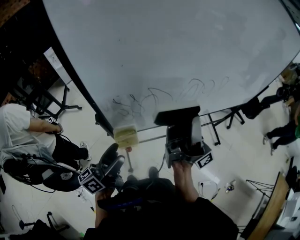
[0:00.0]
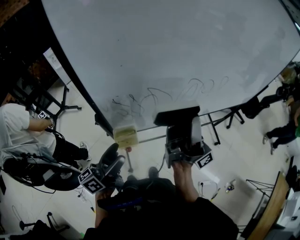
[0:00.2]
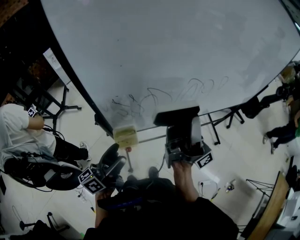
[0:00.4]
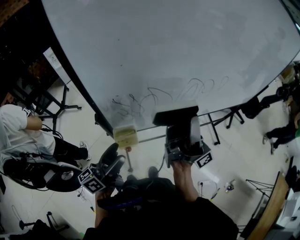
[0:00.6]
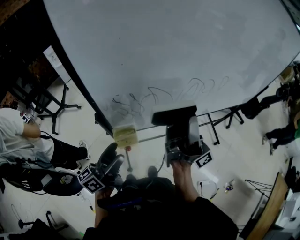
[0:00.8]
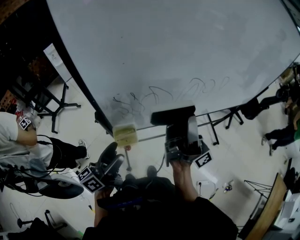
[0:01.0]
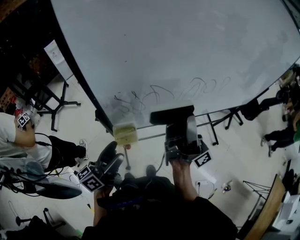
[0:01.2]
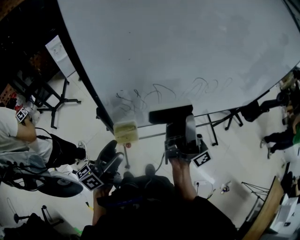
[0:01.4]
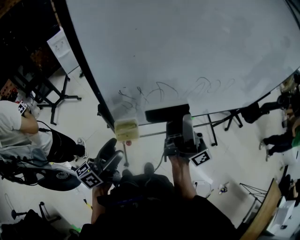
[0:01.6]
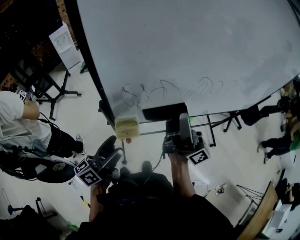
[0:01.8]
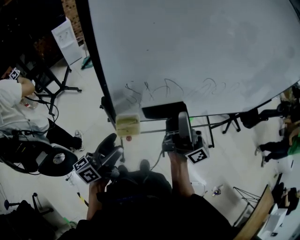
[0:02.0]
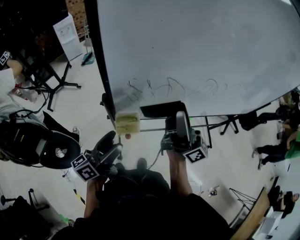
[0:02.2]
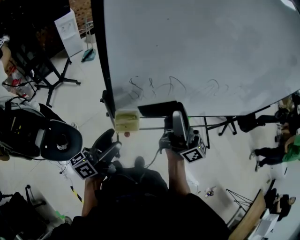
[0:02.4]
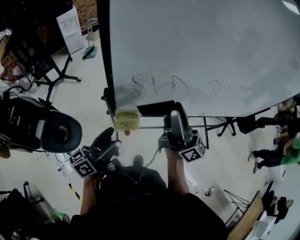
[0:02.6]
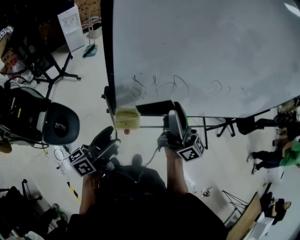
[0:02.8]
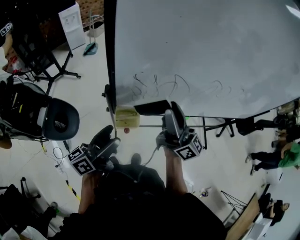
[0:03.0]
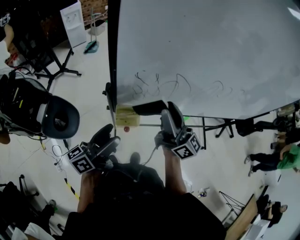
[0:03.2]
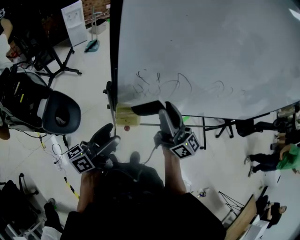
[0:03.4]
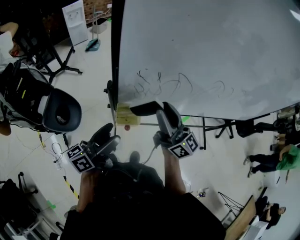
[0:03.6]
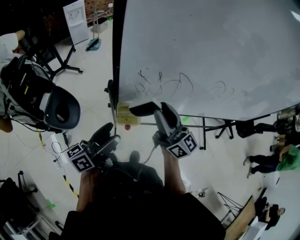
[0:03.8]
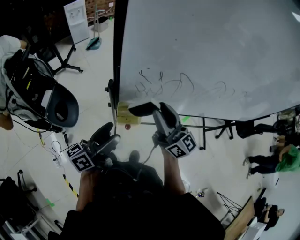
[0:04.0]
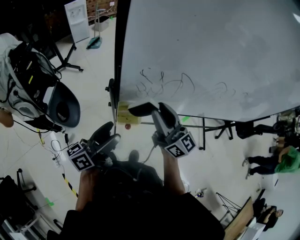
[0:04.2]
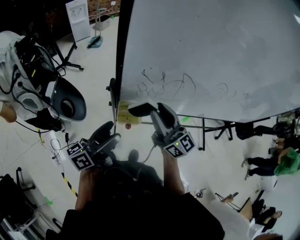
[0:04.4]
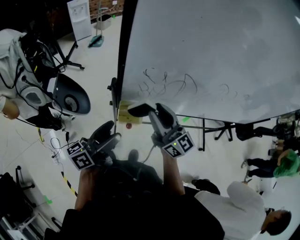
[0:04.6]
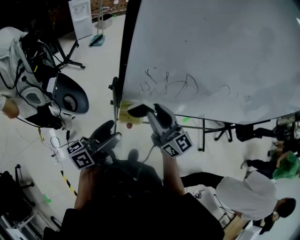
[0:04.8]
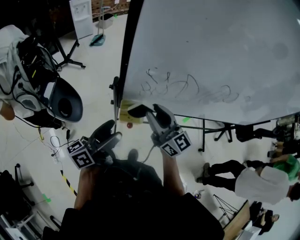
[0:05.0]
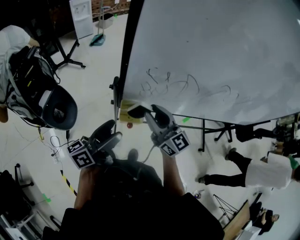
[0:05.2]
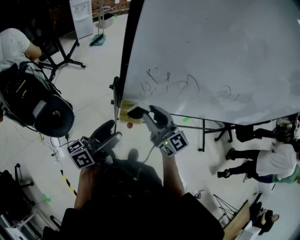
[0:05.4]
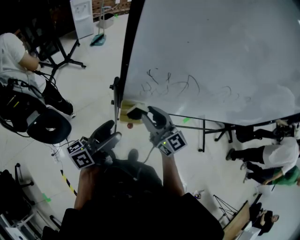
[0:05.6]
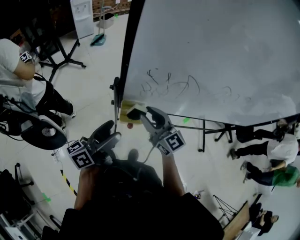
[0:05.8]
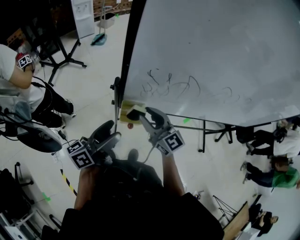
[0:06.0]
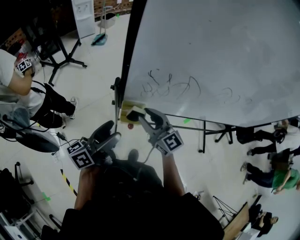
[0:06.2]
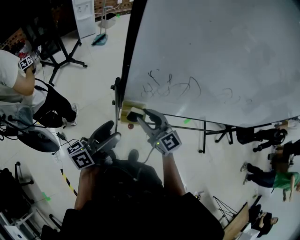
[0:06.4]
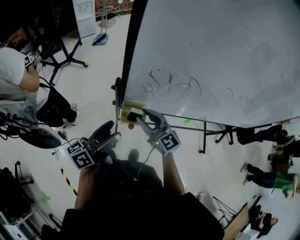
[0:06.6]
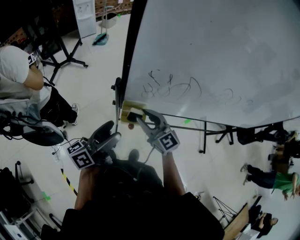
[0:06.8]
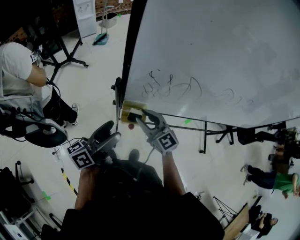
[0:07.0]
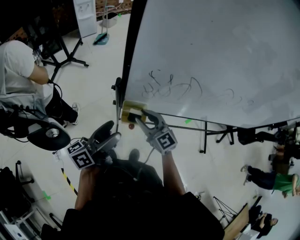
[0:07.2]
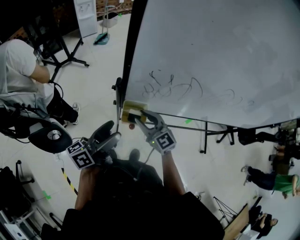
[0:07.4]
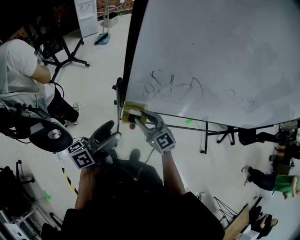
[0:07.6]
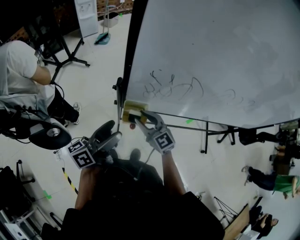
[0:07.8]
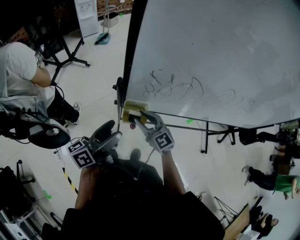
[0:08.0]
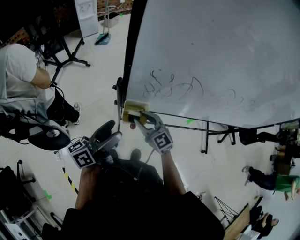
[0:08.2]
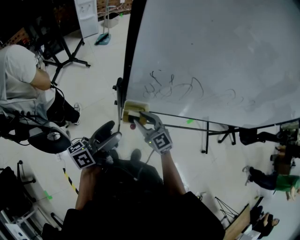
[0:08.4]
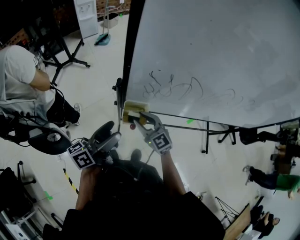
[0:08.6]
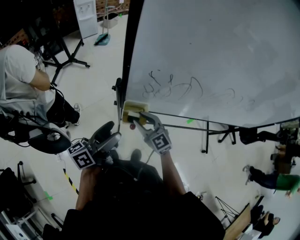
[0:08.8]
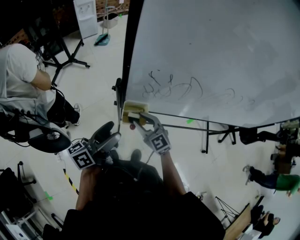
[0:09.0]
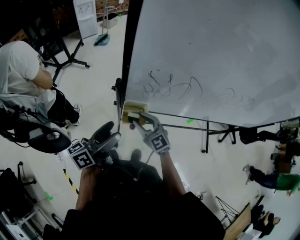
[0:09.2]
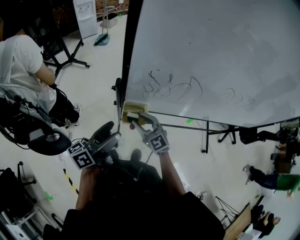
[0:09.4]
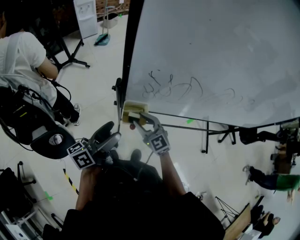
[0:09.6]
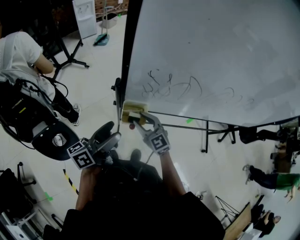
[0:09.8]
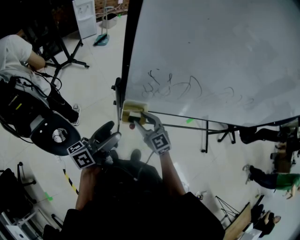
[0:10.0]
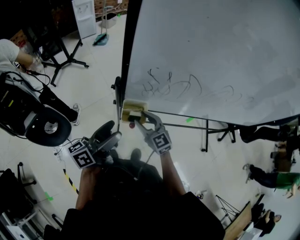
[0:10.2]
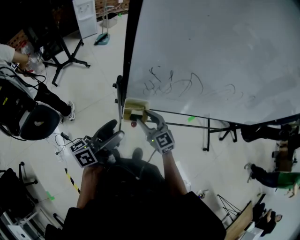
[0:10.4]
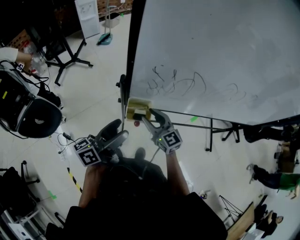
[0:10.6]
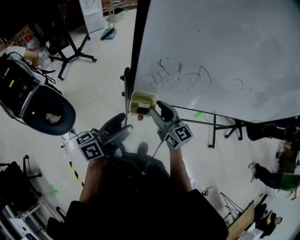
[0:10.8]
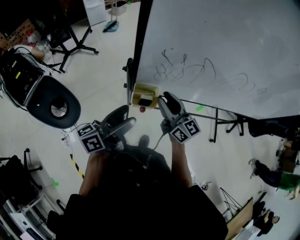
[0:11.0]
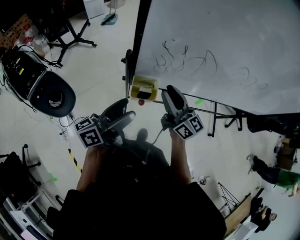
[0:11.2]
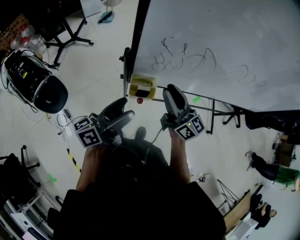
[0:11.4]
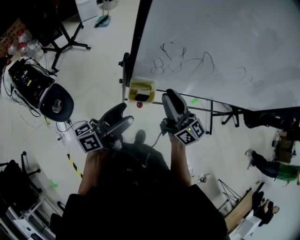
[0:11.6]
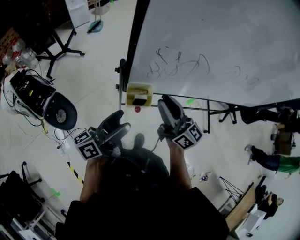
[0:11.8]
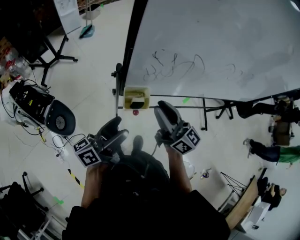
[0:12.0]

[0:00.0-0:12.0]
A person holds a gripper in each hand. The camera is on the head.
0:00.0 to 0:01.6: There are only small adjustments of the grippers.
0:01.6 to 0:03.0: The right gripper is displaced downward and to the left by roughly 10 cm, and rotates approximately 30 degrees.
0:03.0 to 0:04.4: The right gripper heads downward and to the left, covering approximately 10 cm, and turns by some 20 degrees.
0:04.4 to 0:06.0: The right gripper is displaced downward by about 5 cm, and rotates roughly 20 degrees.
0:06.0 to 0:07.6: The right gripper goes approximately 5 cm downward.
0:07.6 to 0:10.4: The grippers make only small movements.
0:10.4 to 0:12.0: The right gripper is displaced upward by some 15 cm, and turns by some 40 degrees.

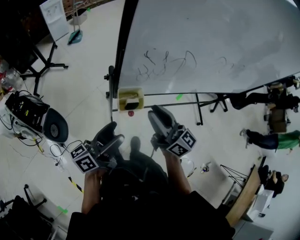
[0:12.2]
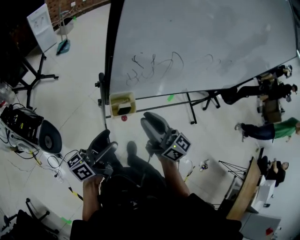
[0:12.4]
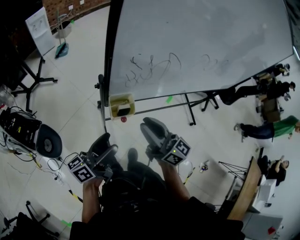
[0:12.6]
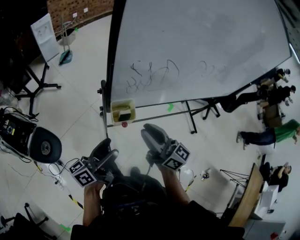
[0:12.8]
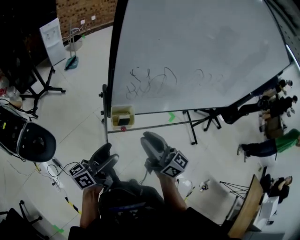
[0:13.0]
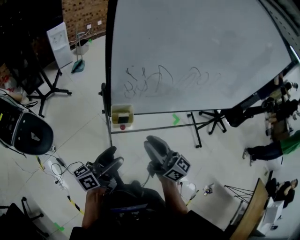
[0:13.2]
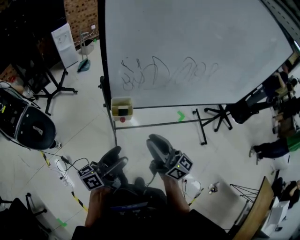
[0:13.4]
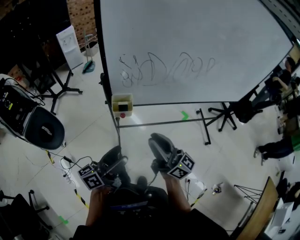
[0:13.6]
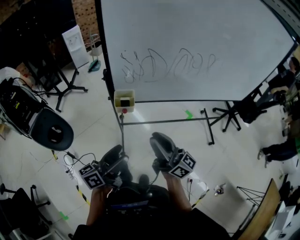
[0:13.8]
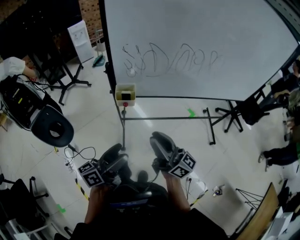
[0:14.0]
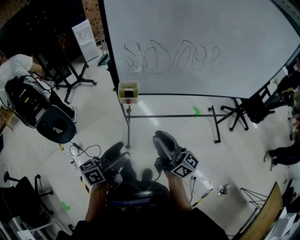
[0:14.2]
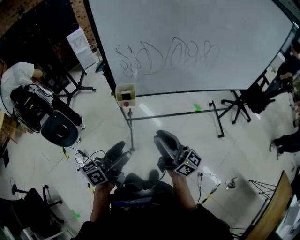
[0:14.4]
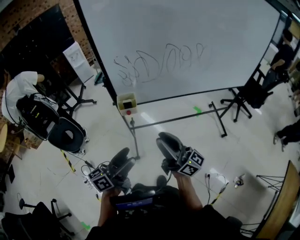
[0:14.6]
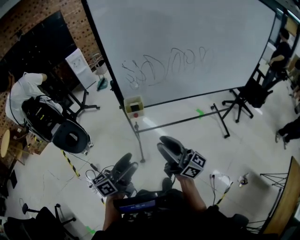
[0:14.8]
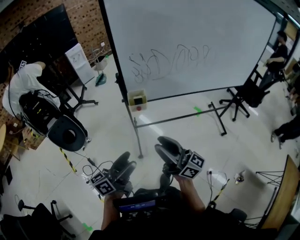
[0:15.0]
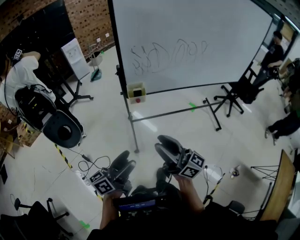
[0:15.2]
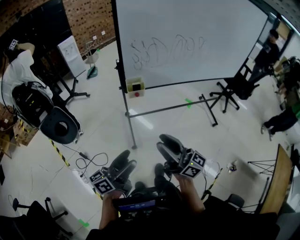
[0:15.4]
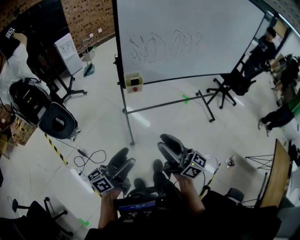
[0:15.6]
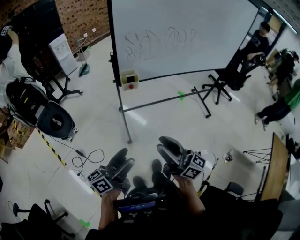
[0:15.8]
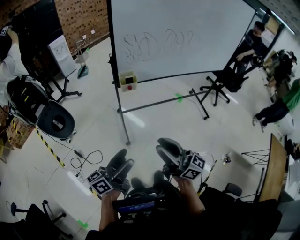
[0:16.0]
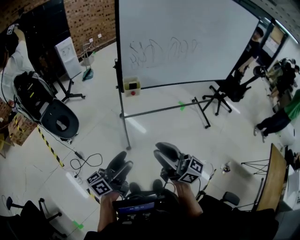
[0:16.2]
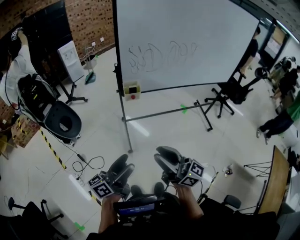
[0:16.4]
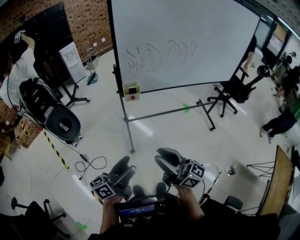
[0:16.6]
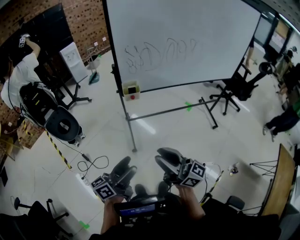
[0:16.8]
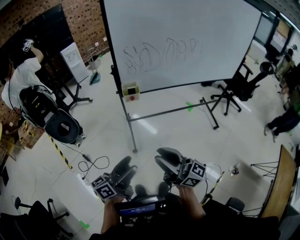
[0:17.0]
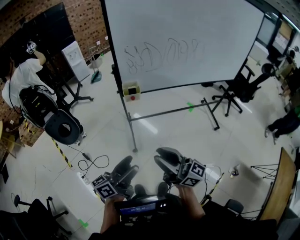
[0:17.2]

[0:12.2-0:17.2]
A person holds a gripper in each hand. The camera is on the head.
0:12.2 to 0:13.8: The two grippers go some 20 cm backward and to the right.
0:13.8 to 0:15.6: Both grippers travel together backward and to the left, roughly 20 cm.
0:15.6 to 0:17.2: The right gripper ends up roughly 5 cm from where it was. Meanwhile the left gripper shifts approximately 5 cm to the right.

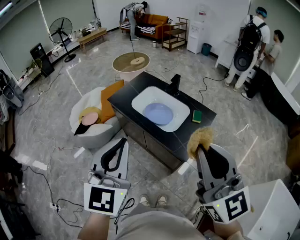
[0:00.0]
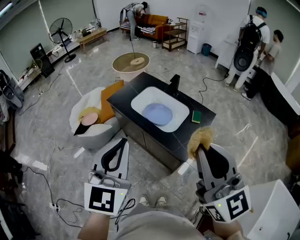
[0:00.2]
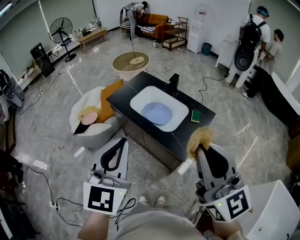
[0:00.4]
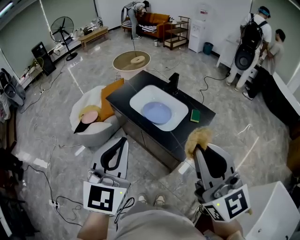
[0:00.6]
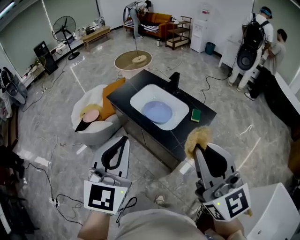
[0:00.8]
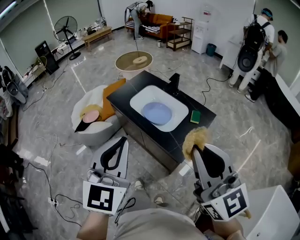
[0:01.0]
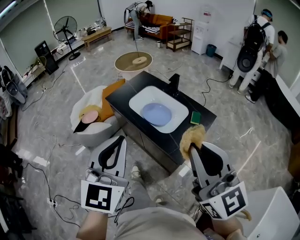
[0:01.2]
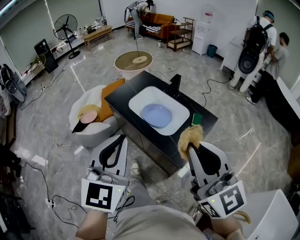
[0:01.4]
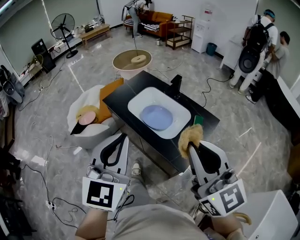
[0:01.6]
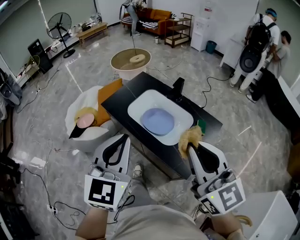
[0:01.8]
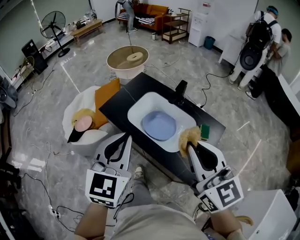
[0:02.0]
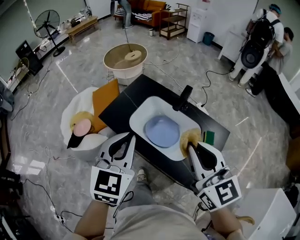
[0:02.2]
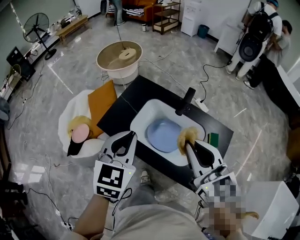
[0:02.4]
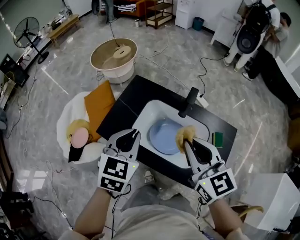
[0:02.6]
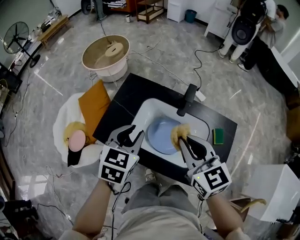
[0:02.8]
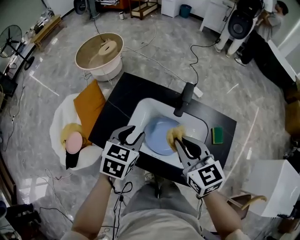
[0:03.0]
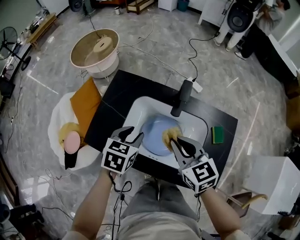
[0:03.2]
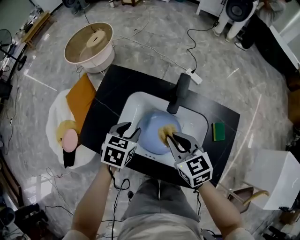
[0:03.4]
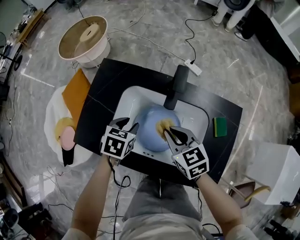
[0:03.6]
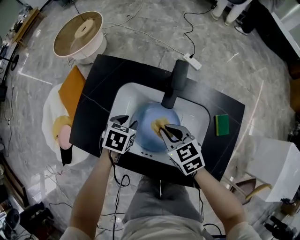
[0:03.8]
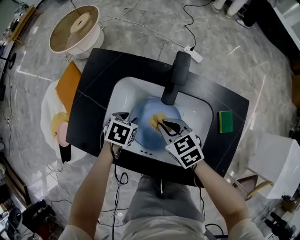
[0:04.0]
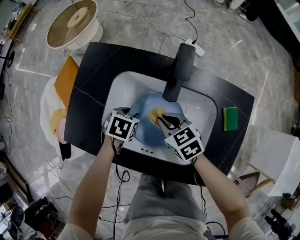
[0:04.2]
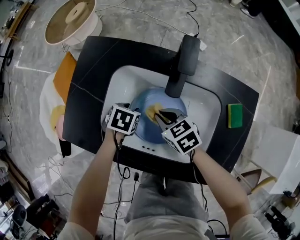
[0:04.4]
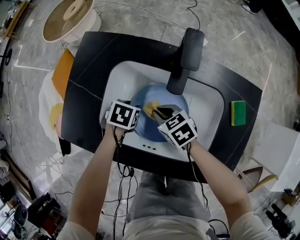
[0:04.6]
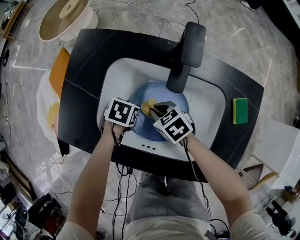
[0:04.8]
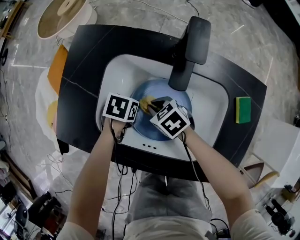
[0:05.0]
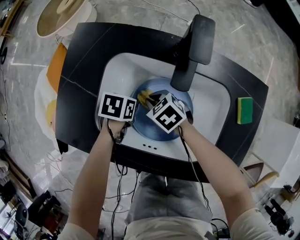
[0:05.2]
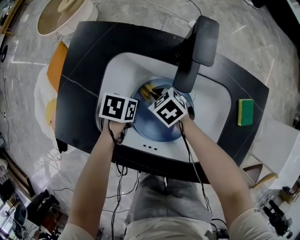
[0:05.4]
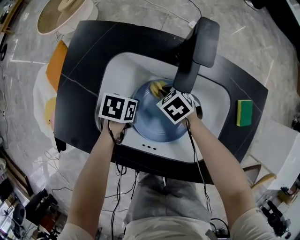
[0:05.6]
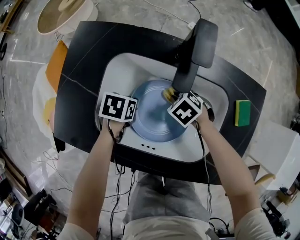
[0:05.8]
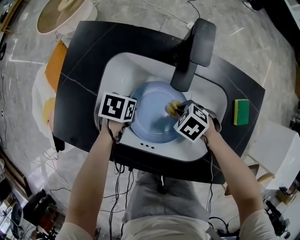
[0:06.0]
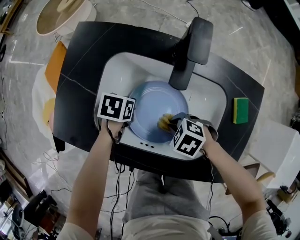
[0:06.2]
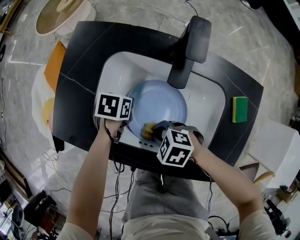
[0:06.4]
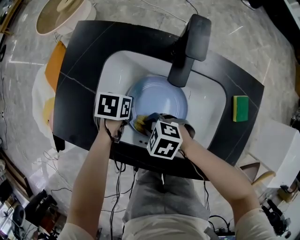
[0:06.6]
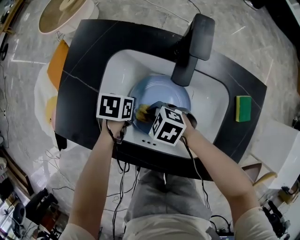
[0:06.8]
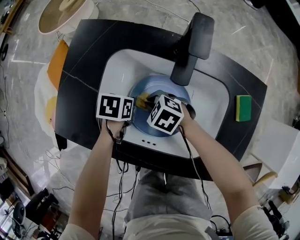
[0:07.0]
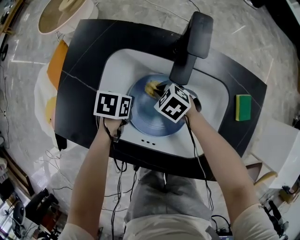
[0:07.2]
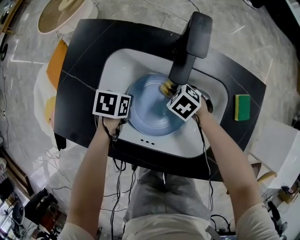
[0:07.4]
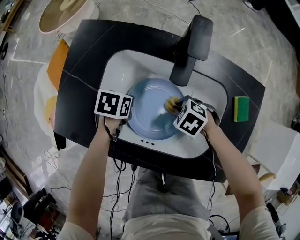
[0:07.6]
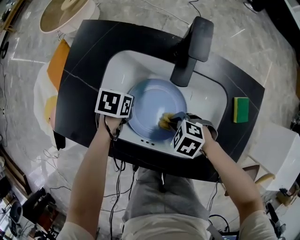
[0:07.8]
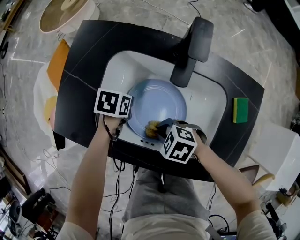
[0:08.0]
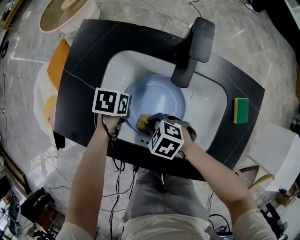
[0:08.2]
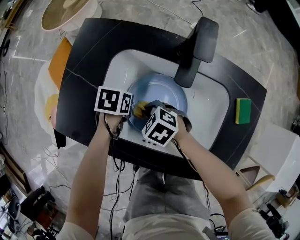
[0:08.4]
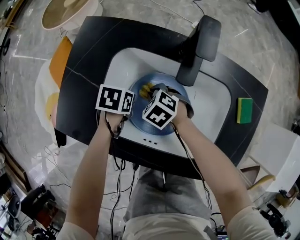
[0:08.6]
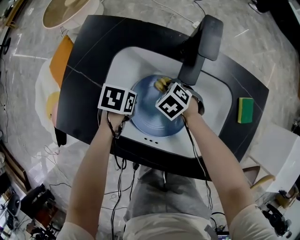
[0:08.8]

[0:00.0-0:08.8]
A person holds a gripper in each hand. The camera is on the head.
0:00.0 to 0:01.4: The left gripper changes place by about 5 cm; the right gripper ends up roughly 5 cm from where it was.
0:01.4 to 0:03.0: The pair of grippers is taken approximately 40 cm. The left gripper tips its fingers downward by some 40 degrees, and opens up. Meanwhile the right gripper changes its angle by approximately 40 degrees.
0:03.0 to 0:04.4: Both grippers move downward, some 30 cm. The left gripper tilts its fingers approximately 30 degrees downward; the right gripper rotates approximately 30 degrees.
0:04.4 to 0:05.8: The right gripper heads downward, covering approximately 10 cm, and changes its angle by about 30 degrees. Meanwhile the left gripper closes up.
